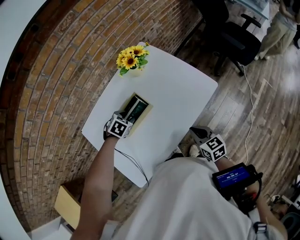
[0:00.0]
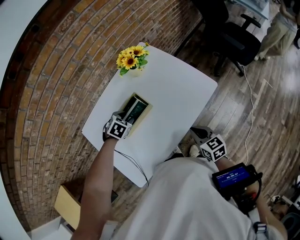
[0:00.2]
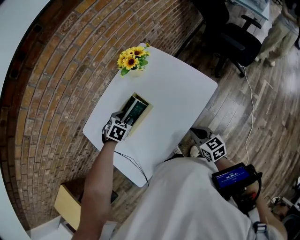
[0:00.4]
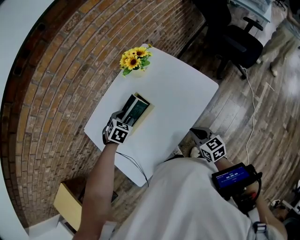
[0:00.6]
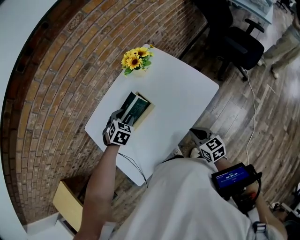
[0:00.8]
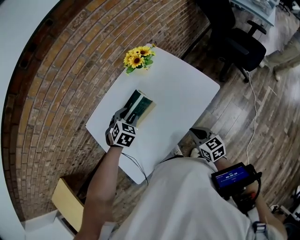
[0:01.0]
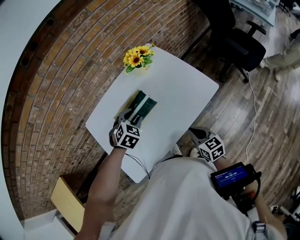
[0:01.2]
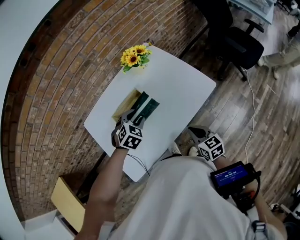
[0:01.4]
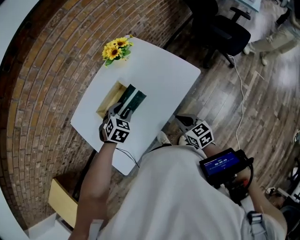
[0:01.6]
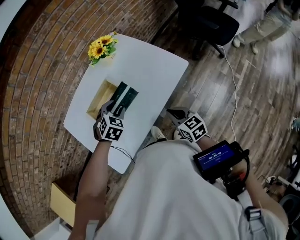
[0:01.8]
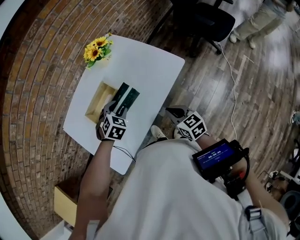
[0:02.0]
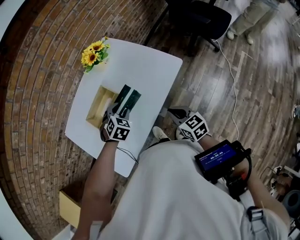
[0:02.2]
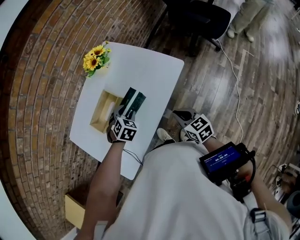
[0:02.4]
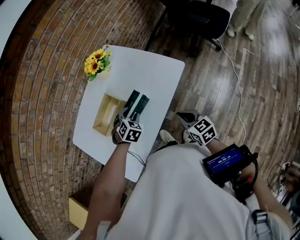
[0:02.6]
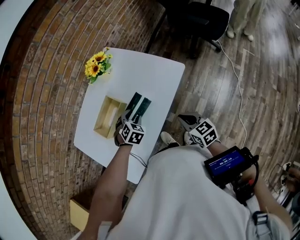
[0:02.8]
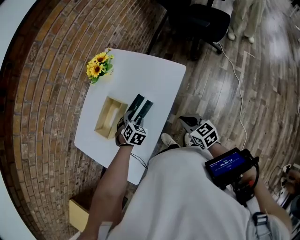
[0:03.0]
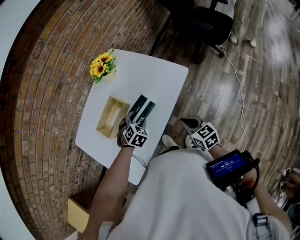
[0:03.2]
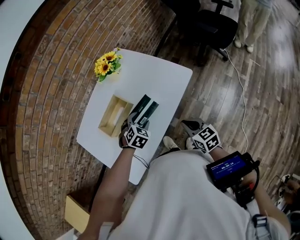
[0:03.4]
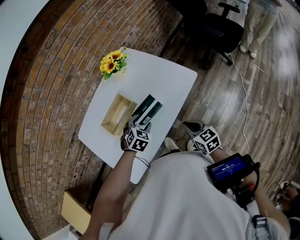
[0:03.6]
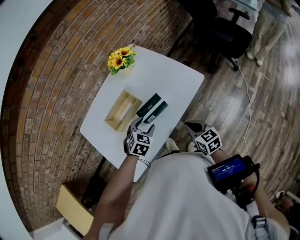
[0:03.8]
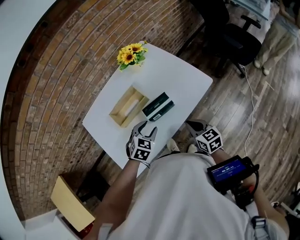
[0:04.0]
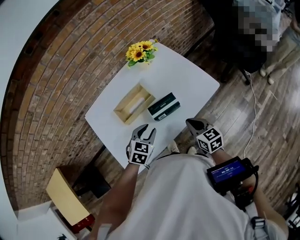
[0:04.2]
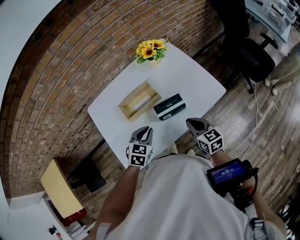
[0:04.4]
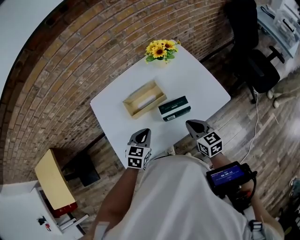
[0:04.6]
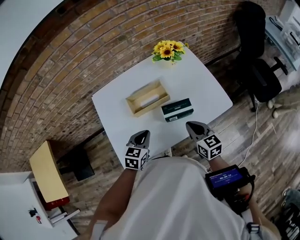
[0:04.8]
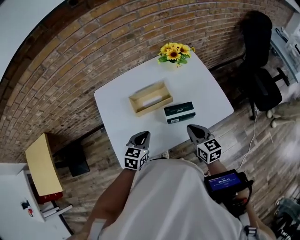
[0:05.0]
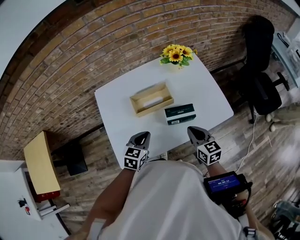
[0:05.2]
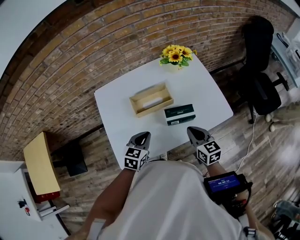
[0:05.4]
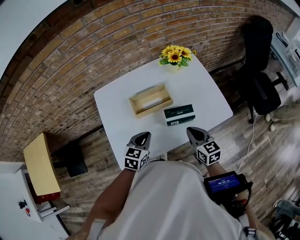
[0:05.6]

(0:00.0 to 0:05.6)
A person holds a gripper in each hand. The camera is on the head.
0:00.0 - 0:01.4: The left gripper moves upward, backward and to the right, about 15 cm.
0:01.4 - 0:02.8: The left gripper moves downward and to the right, roughly 10 cm, while the right gripper changes place by some 5 cm.
0:02.8 - 0:04.2: The right gripper goes approximately 5 cm to the left and forward. Meanwhile the left gripper goes roughly 10 cm backward, upward and to the left, and turns by about 30 degrees.
0:04.2 - 0:05.6: The left gripper is displaced to the left by about 5 cm, turns by about 30 degrees, and closes up, while the right gripper moves roughly 5 cm.

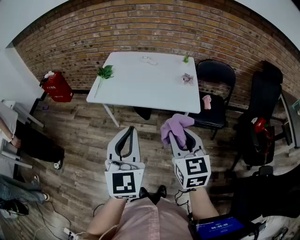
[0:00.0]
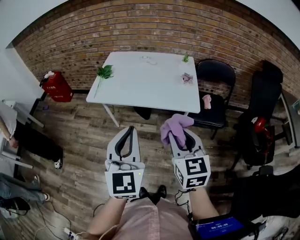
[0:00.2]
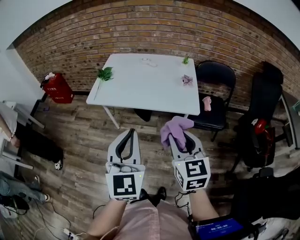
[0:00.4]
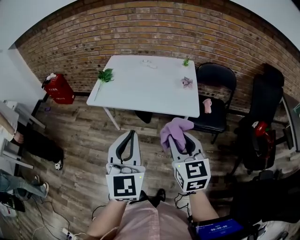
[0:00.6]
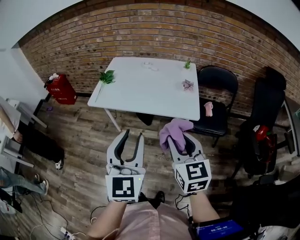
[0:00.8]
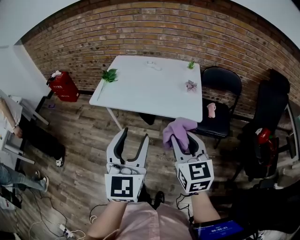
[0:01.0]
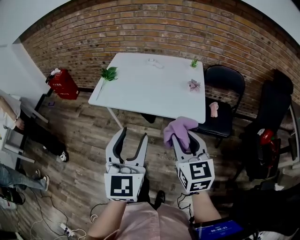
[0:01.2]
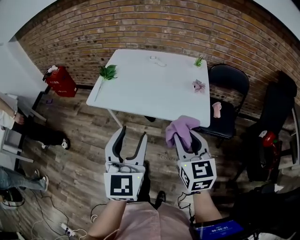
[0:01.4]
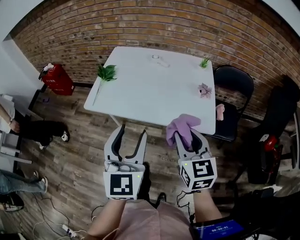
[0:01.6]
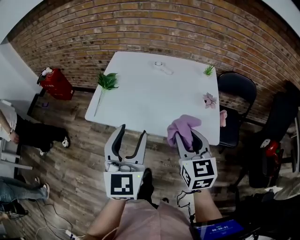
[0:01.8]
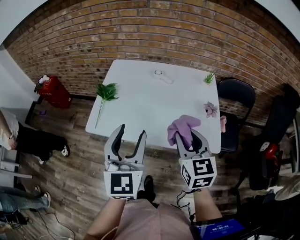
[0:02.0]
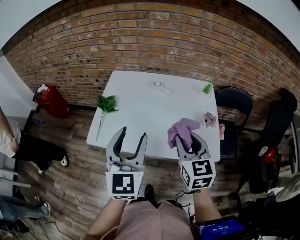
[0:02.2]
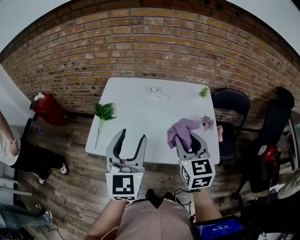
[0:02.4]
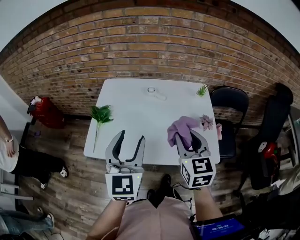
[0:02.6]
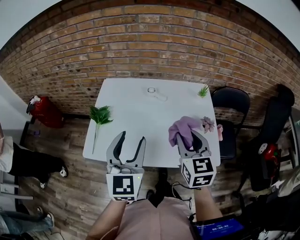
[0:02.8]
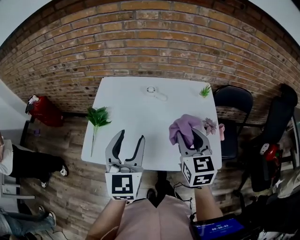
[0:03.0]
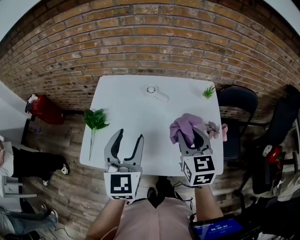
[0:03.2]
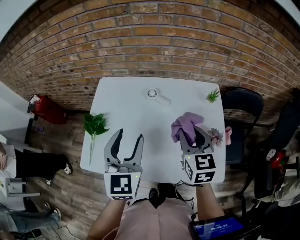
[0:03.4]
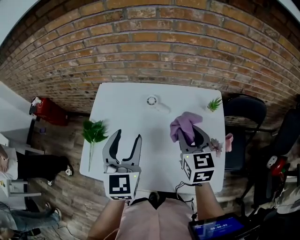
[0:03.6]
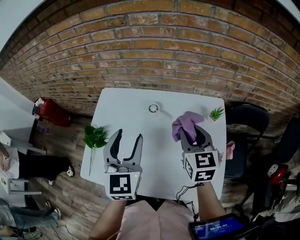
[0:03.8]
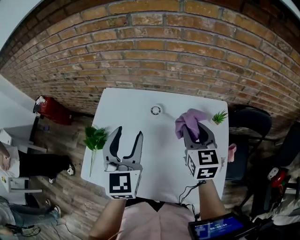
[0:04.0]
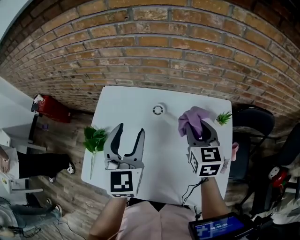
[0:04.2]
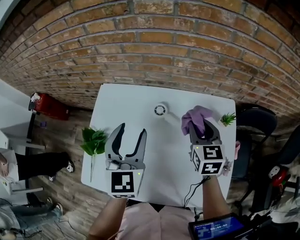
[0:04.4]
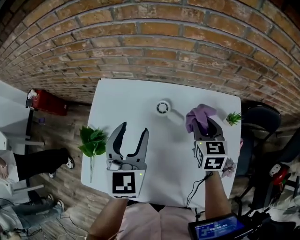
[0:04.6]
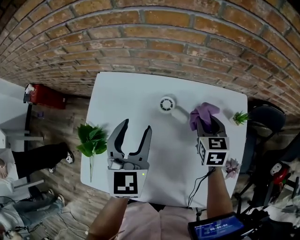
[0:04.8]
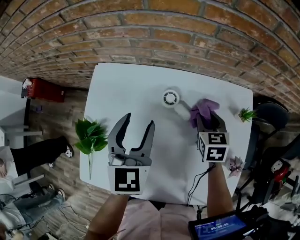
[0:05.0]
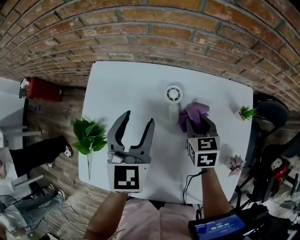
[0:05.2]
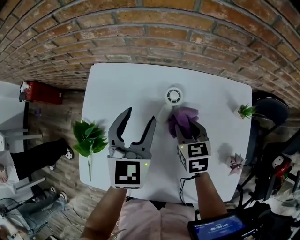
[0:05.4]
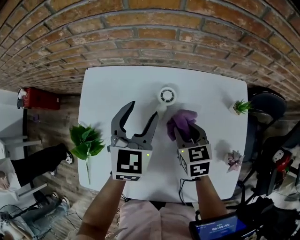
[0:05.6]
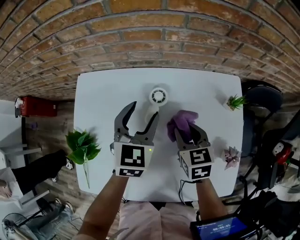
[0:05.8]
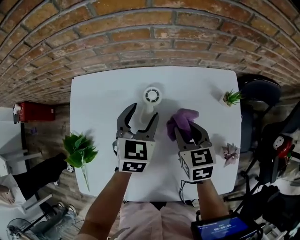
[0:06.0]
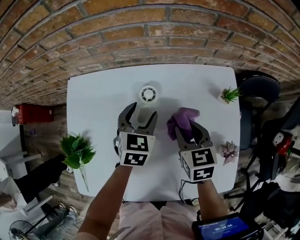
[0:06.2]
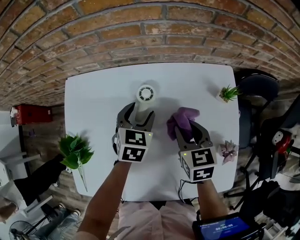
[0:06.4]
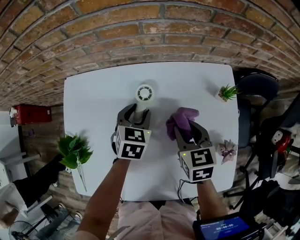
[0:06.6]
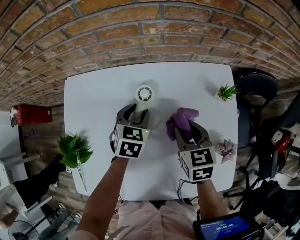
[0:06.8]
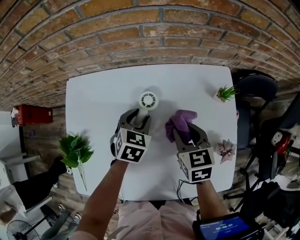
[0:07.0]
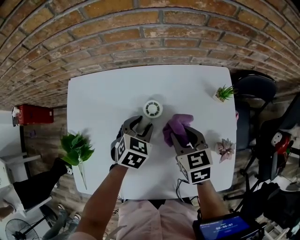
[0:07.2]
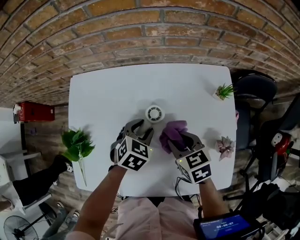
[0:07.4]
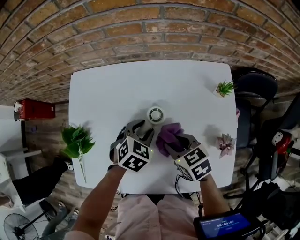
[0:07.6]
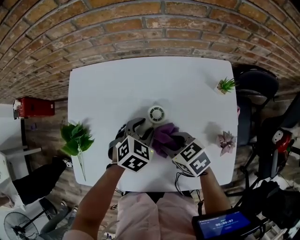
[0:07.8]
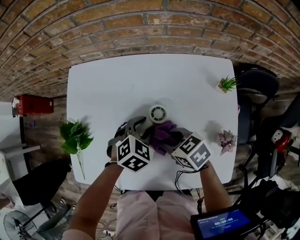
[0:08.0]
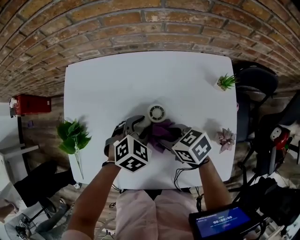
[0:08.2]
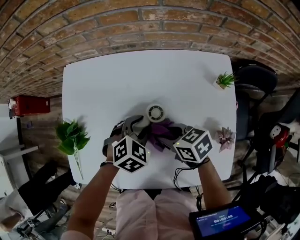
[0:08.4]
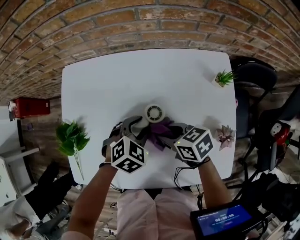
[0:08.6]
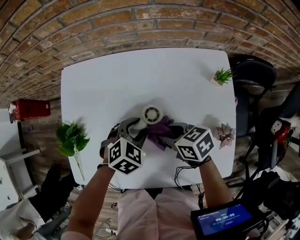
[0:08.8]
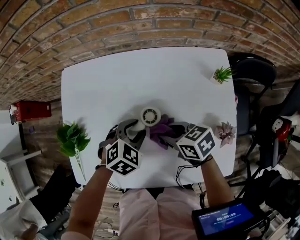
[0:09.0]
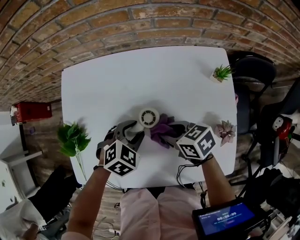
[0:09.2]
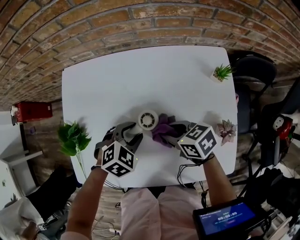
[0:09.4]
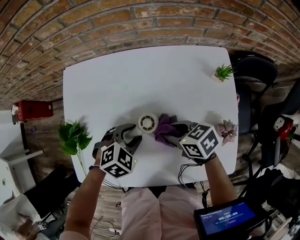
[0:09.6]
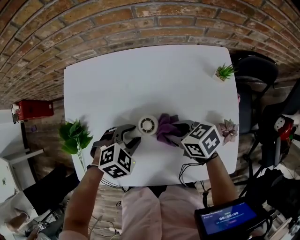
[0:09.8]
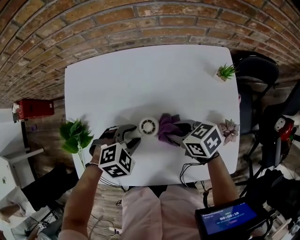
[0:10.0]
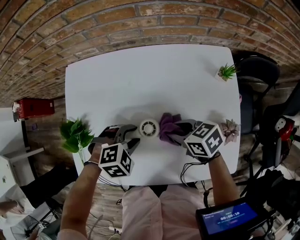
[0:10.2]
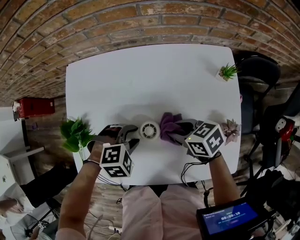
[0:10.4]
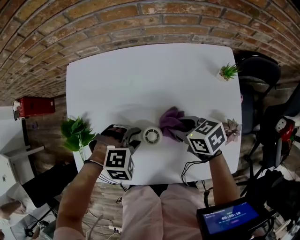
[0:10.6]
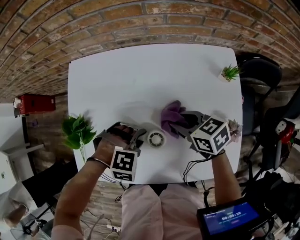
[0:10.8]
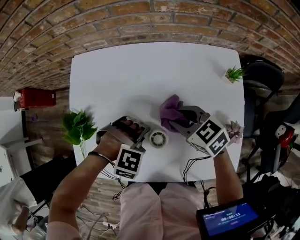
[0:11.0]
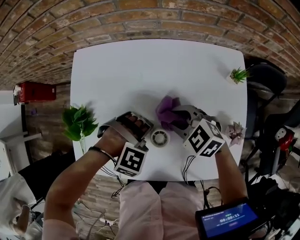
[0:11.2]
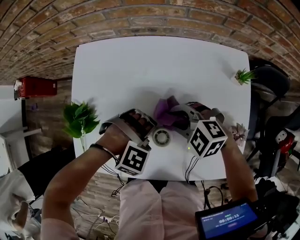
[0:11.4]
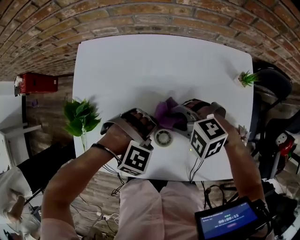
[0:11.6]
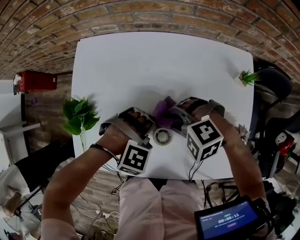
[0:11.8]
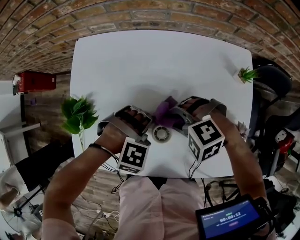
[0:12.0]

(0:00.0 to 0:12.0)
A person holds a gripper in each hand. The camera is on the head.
0:00.0 - 0:01.6: The two grippers go about 15 cm forward. The left gripper opens.
0:01.6 - 0:03.0: The grippers both shift forward by about 25 cm.
0:03.0 - 0:04.4: Both grippers travel together forward, approximately 25 cm.
0:04.4 - 0:06.0: The right gripper is displaced downward by about 10 cm. The left gripper moves downward, forward and to the right, roughly 20 cm, and swivels roughly 30 degrees.
0:06.0 - 0:07.6: The right gripper heads backward, covering about 10 cm, and changes its angle by roughly 30 degrees, while the left gripper travels backward and downward by some 10 cm, and changes its angle by approximately 30 degrees.
0:07.6 - 0:09.0: The grippers stay close to where they were, moving slightly.
0:09.0 - 0:10.4: The left gripper changes place by about 5 cm, and turns by roughly 30 degrees.
0:10.4 - 0:12.0: The right gripper ends up some 5 cm from where it was, and rolls counterclockwise, seen from behind, by some 80 degrees; the left gripper turns by some 30 degrees.

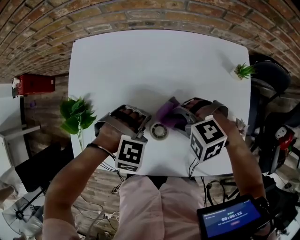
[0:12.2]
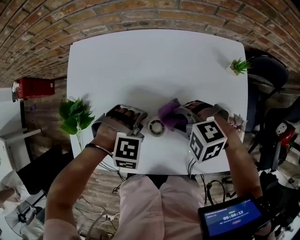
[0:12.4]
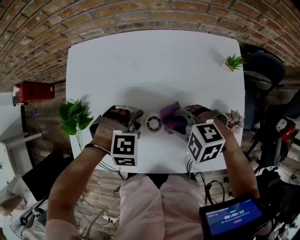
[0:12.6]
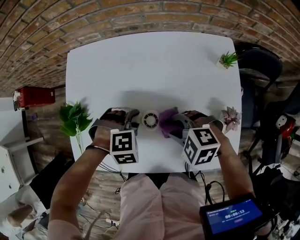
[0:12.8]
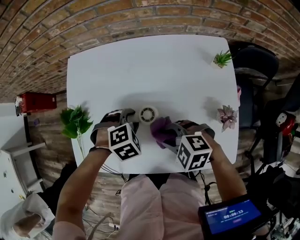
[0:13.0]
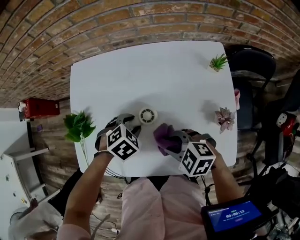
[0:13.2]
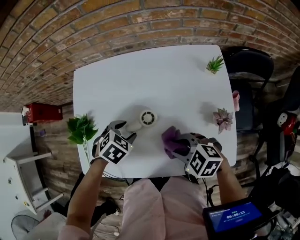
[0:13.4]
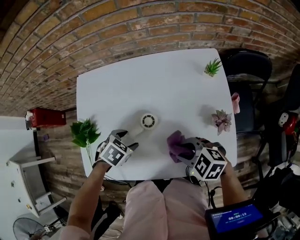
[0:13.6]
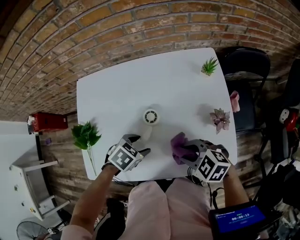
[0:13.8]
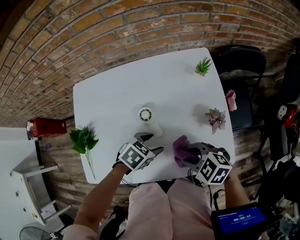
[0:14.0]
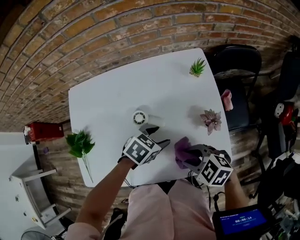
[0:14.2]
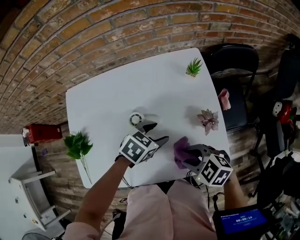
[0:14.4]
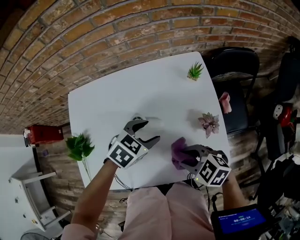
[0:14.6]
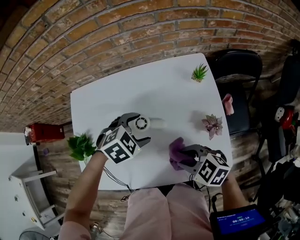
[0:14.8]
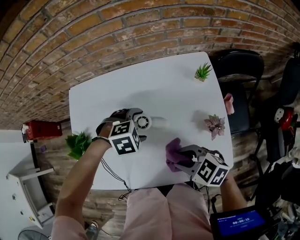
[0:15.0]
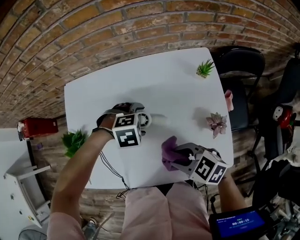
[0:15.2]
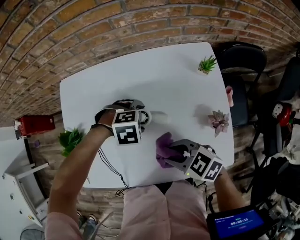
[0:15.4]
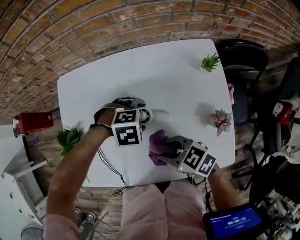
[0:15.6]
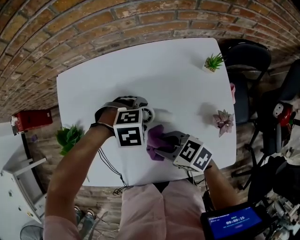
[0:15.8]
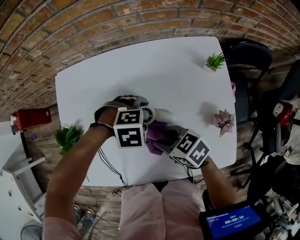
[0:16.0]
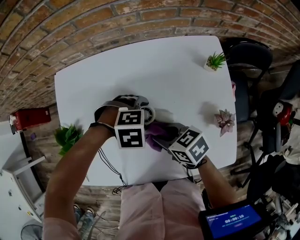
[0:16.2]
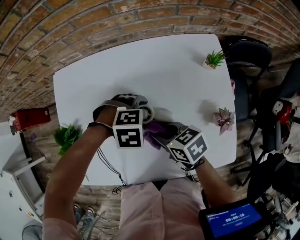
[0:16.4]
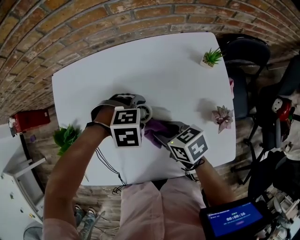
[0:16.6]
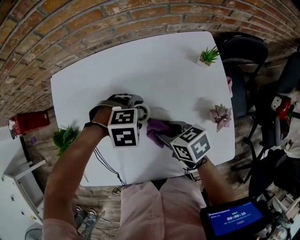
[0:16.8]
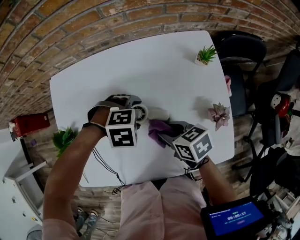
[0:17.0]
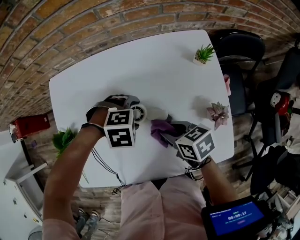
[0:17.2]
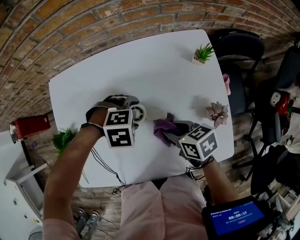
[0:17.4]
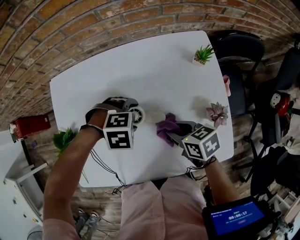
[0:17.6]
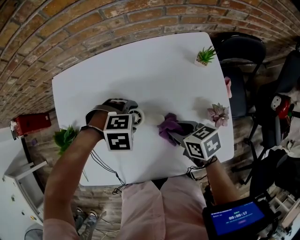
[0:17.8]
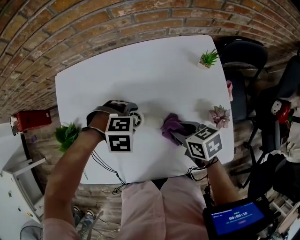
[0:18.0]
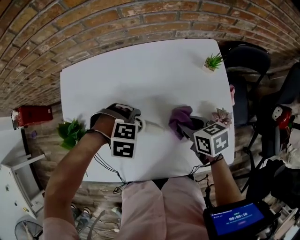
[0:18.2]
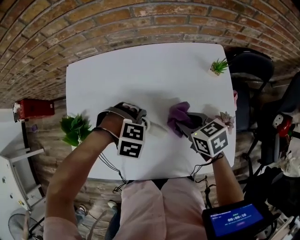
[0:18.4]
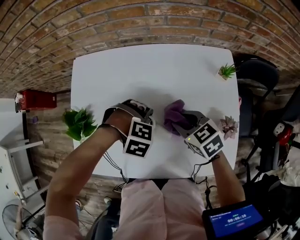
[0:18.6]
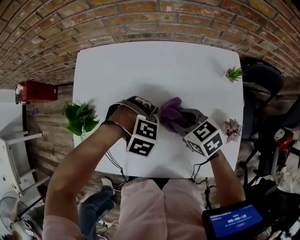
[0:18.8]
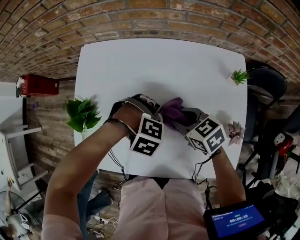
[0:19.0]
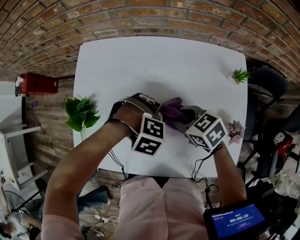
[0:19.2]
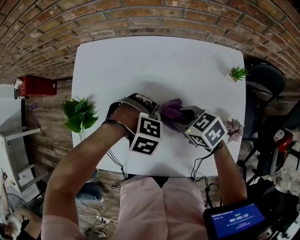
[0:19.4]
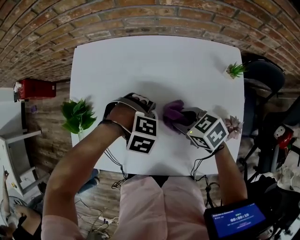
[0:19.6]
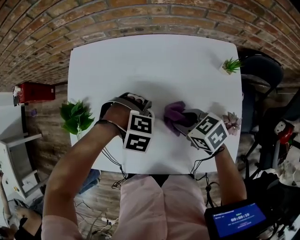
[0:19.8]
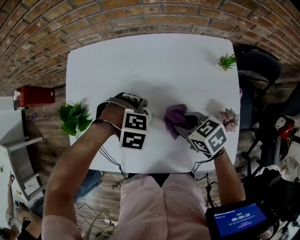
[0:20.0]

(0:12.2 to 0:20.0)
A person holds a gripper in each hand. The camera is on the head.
0:12.2 - 0:13.8: The left gripper rotates around the line of its fingers by roughly 60 degrees, counterclockwise from behind. The right gripper shifts by some 15 cm, and swivels about 40 degrees.
0:13.8 - 0:15.4: The left gripper travels upward and back again, some 5 cm each way, and twists approximately 50 degrees clockwise, seen from behind. The right gripper changes place by approximately 5 cm.
0:15.4 - 0:16.8: The right gripper changes place by roughly 10 cm, and changes its angle by approximately 30 degrees.
0:16.8 - 0:18.4: The left gripper ends up approximately 5 cm from where it was, while the right gripper moves some 5 cm.
